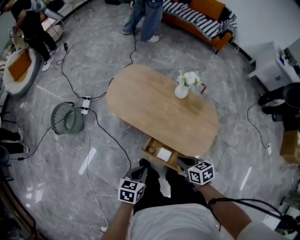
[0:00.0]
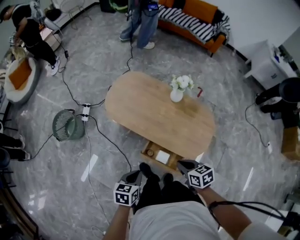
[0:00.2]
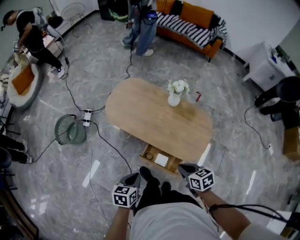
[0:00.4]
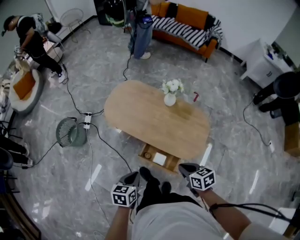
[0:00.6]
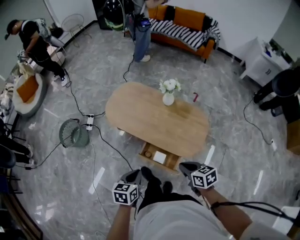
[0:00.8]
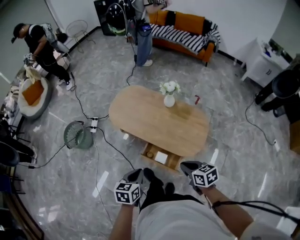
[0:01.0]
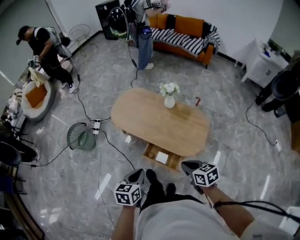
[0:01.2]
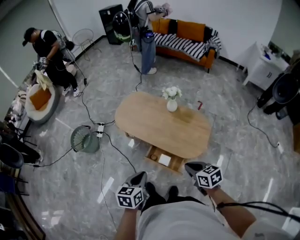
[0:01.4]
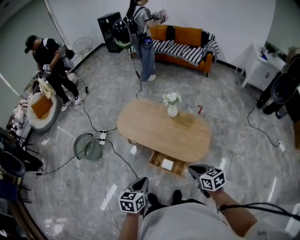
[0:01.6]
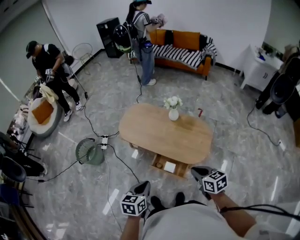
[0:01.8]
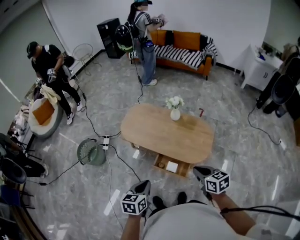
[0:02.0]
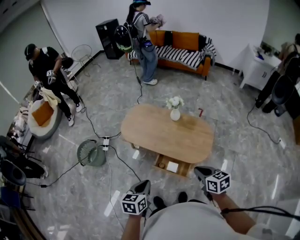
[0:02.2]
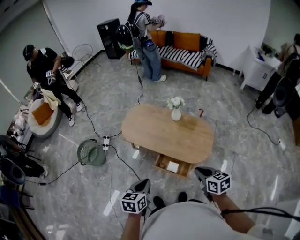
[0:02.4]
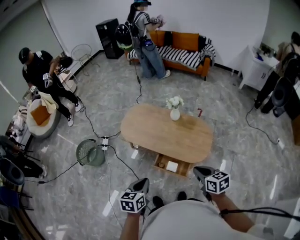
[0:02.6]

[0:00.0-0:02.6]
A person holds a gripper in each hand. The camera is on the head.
0:00.0 to 0:01.2: The right gripper goes roughly 20 cm backward, upward and to the right; the left gripper moves upward and backward, some 15 cm.
0:01.2 to 0:02.6: The right gripper is displaced upward by approximately 5 cm. Meanwhile the left gripper travels to the left by approximately 5 cm.

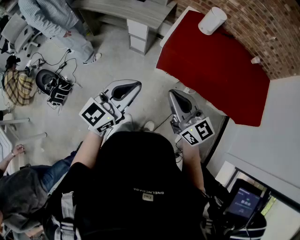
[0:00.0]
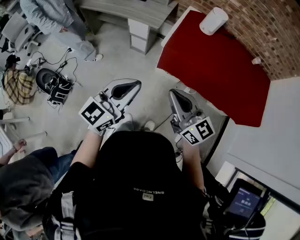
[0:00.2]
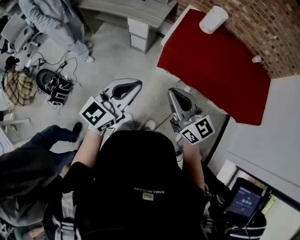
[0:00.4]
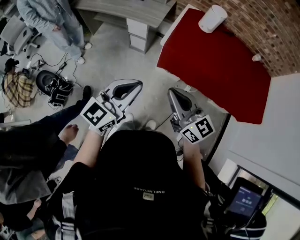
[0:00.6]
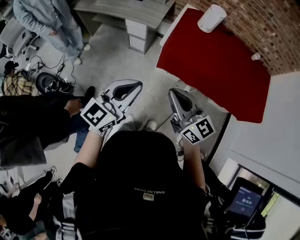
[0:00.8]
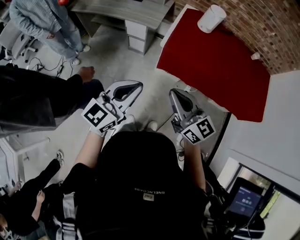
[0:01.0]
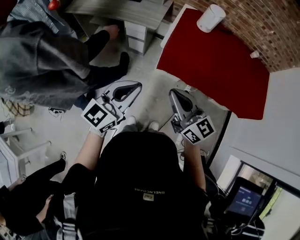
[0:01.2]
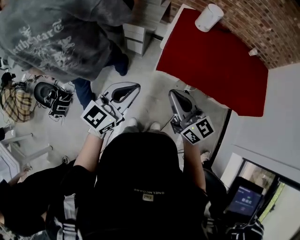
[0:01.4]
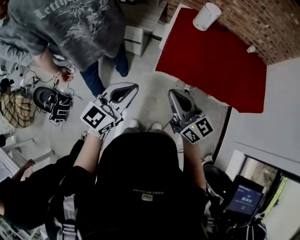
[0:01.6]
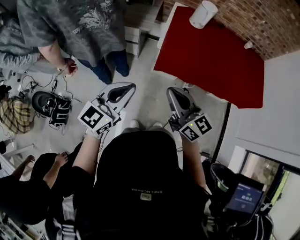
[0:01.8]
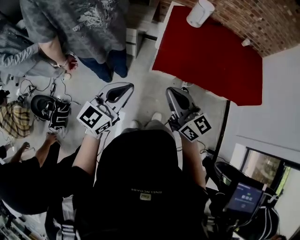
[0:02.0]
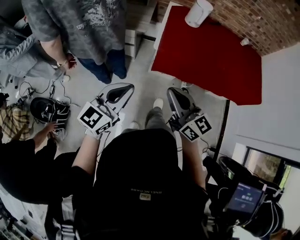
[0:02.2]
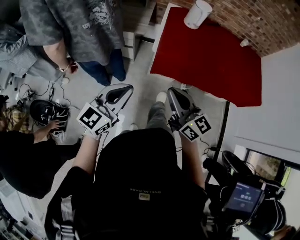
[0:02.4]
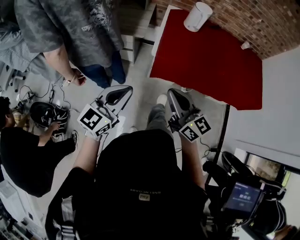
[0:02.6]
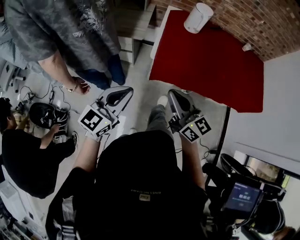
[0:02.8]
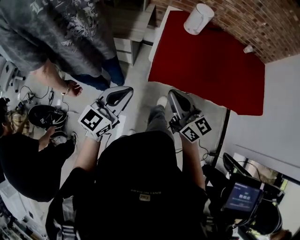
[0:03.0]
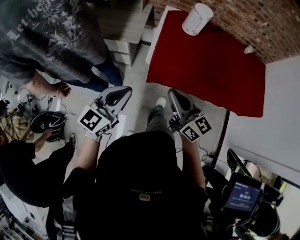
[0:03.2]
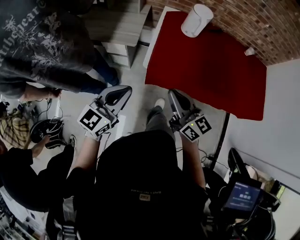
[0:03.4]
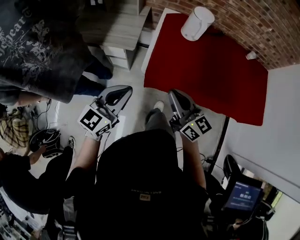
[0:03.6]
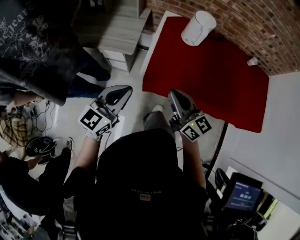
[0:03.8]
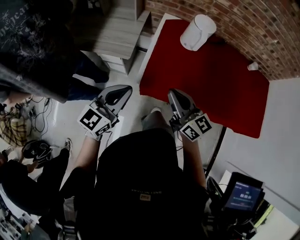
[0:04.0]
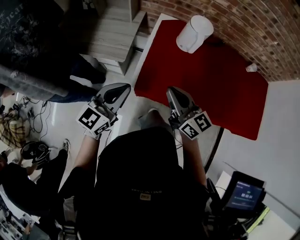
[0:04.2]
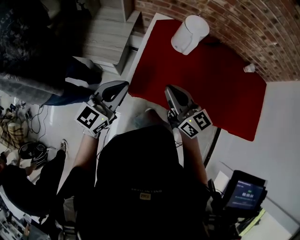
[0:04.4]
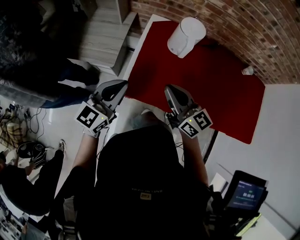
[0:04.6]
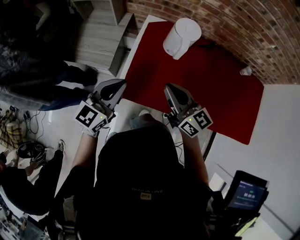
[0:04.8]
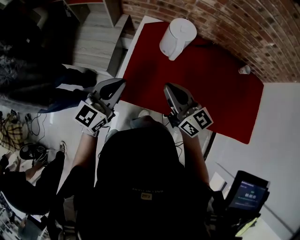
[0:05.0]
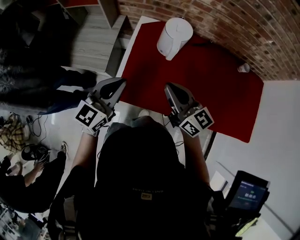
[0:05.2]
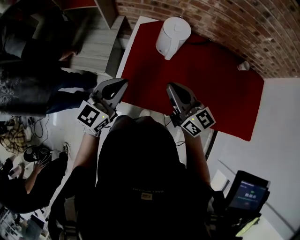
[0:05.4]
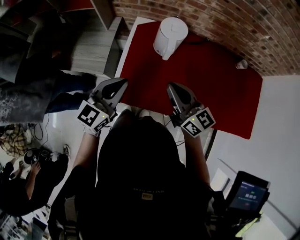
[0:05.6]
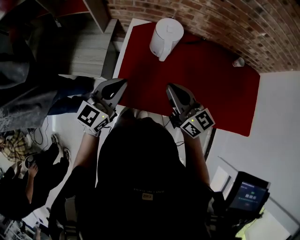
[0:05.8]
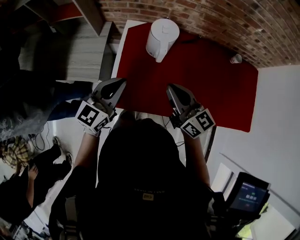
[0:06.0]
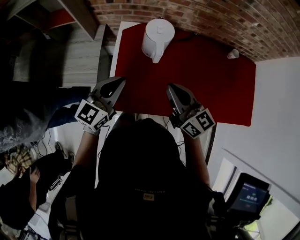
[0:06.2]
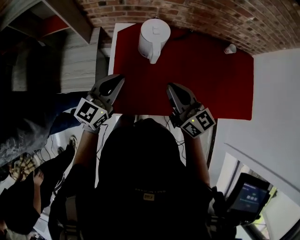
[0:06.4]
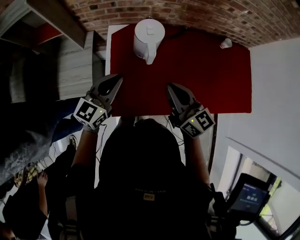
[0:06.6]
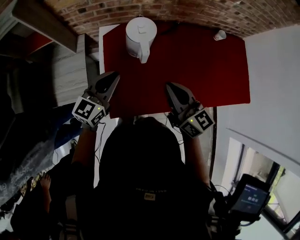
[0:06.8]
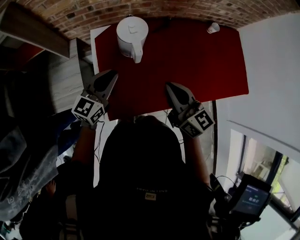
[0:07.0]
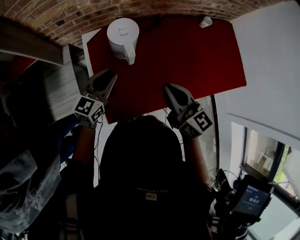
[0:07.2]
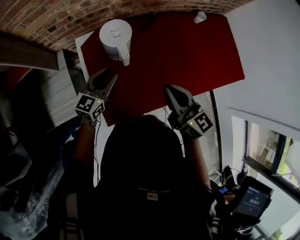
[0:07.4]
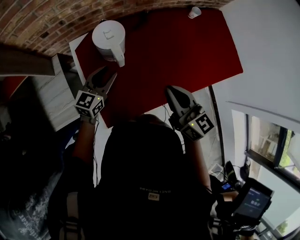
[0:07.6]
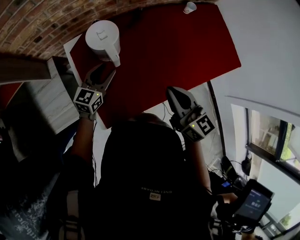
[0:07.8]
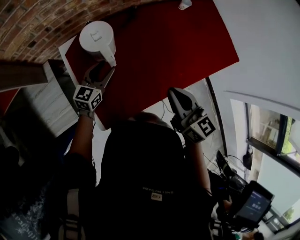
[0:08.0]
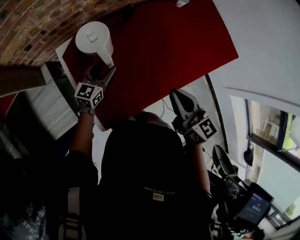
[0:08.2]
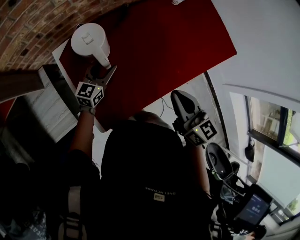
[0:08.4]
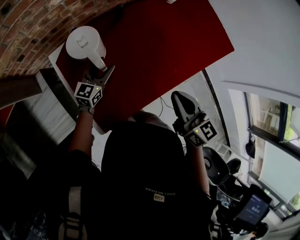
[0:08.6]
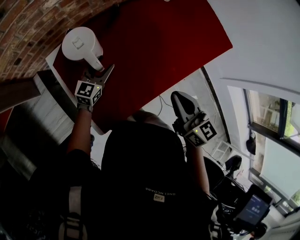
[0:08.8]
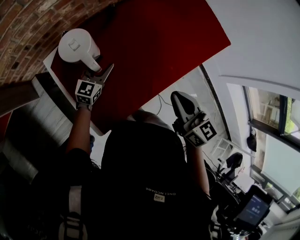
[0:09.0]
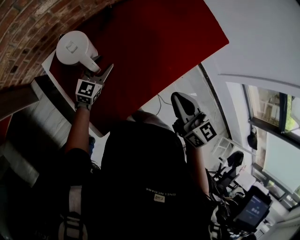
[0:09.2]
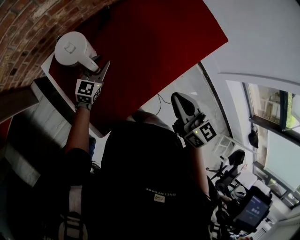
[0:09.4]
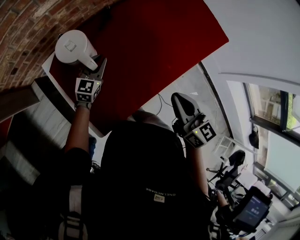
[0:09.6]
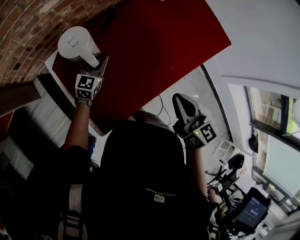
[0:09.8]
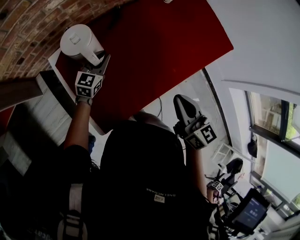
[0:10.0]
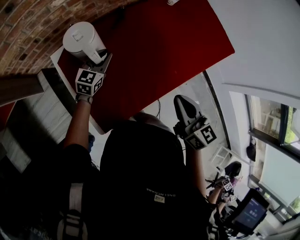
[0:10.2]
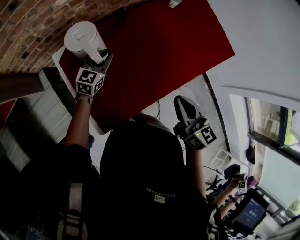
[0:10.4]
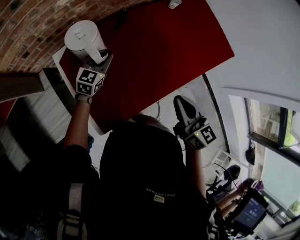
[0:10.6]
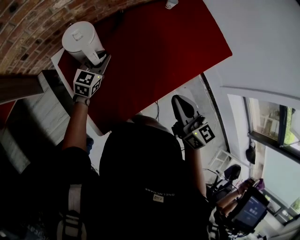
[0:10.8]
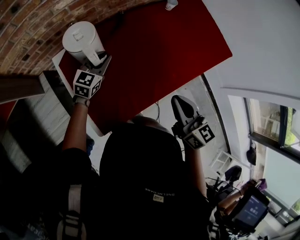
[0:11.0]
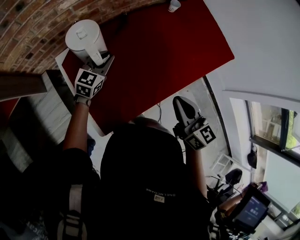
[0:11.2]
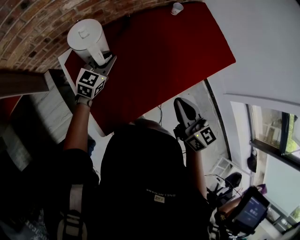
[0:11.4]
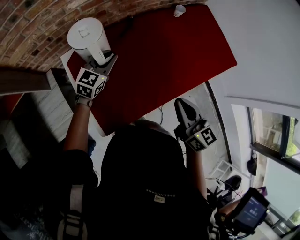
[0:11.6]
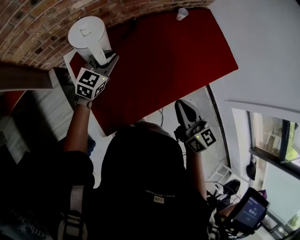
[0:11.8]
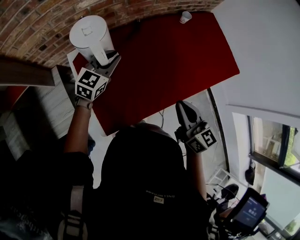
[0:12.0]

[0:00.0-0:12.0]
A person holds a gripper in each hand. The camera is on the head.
0:00.0 to 0:01.6: Both grippers move to the left, some 5 cm.
0:01.6 to 0:03.0: The grippers both shift forward by roughly 10 cm.
0:03.0 to 0:04.4: The left gripper shifts roughly 30 cm forward and to the right. The right gripper goes approximately 25 cm forward.
0:04.4 to 0:06.0: The left gripper heads forward and to the right, covering about 15 cm; the right gripper heads to the right and forward, covering approximately 15 cm.
0:06.0 to 0:07.6: The right gripper ends up approximately 10 cm from where it was, and turns by about 30 degrees, while the left gripper shifts by about 20 cm, rotates approximately 20 degrees, and opens.
0:07.6 to 0:09.0: The right gripper moves to the right, approximately 10 cm. Meanwhile the left gripper moves downward, forward and to the right, about 15 cm.
0:09.0 to 0:10.4: The left gripper closes its fingers.
0:10.4 to 0:12.0: The left gripper shifts about 10 cm upward.

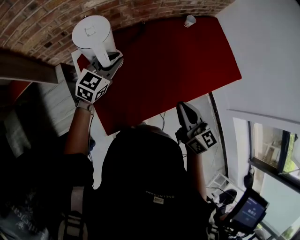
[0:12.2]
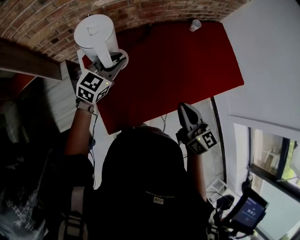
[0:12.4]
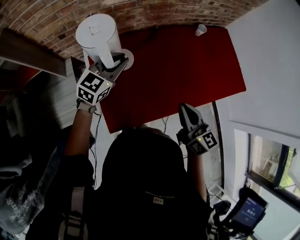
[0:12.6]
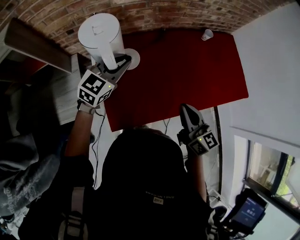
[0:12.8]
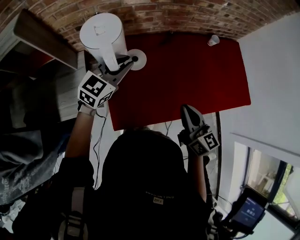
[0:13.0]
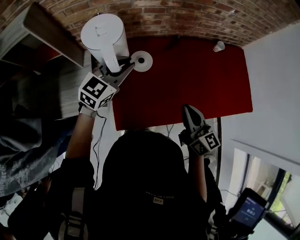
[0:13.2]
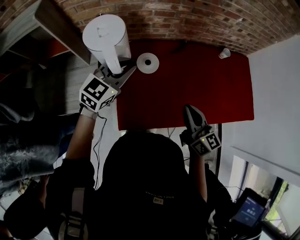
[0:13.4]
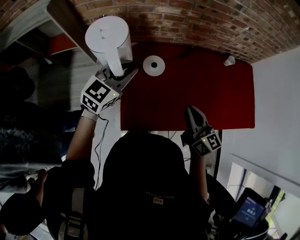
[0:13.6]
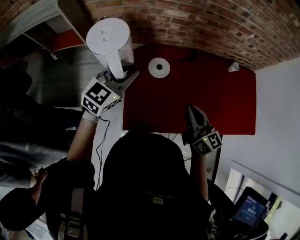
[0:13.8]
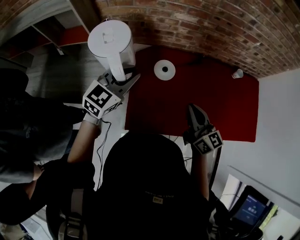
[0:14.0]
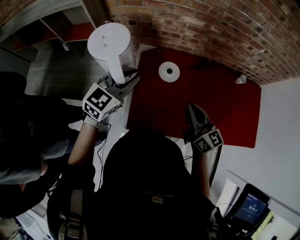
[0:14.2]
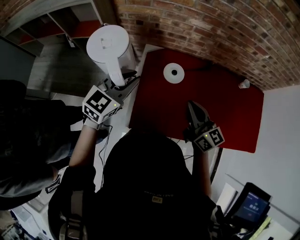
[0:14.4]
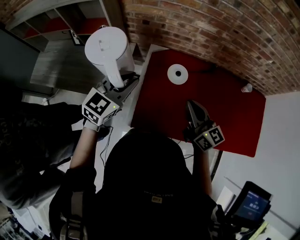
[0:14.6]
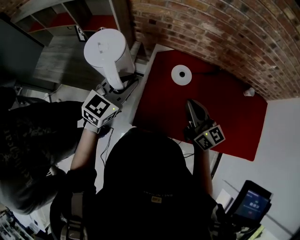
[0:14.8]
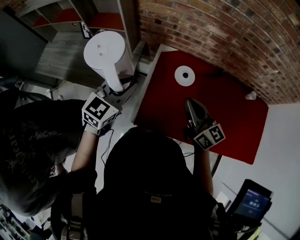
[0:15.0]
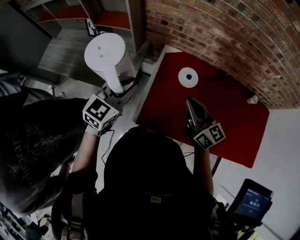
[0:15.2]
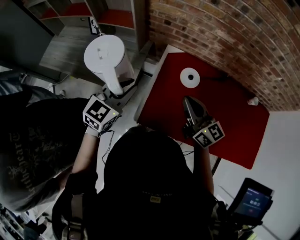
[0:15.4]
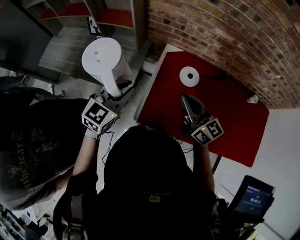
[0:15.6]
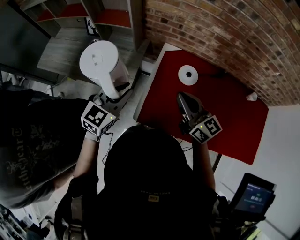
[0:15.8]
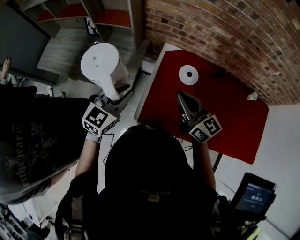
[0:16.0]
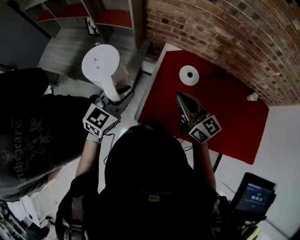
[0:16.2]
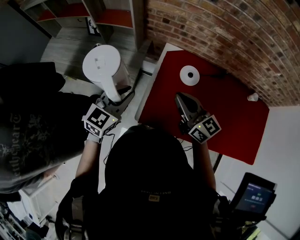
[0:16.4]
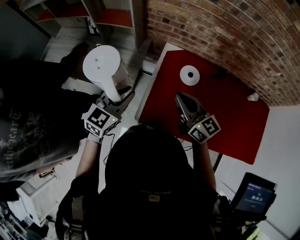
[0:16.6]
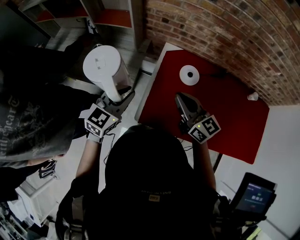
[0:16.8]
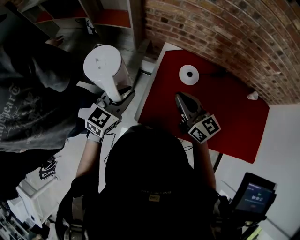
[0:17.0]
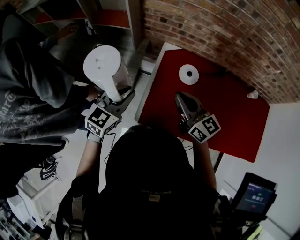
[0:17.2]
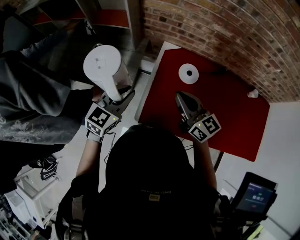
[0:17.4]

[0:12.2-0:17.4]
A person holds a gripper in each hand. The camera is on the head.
0:12.2 to 0:14.0: The right gripper moves to the left, about 15 cm, and rotates about 30 degrees. The left gripper moves to the left, backward and upward, approximately 20 cm, and changes its angle by some 20 degrees.
0:14.0 to 0:15.6: The right gripper goes about 15 cm to the left, and changes its angle by approximately 20 degrees. Meanwhile the left gripper is displaced to the left and backward by roughly 15 cm.
0:15.6 to 0:17.4: The grippers stay close to where they were, moving slightly.

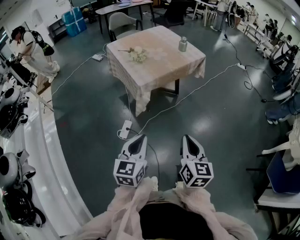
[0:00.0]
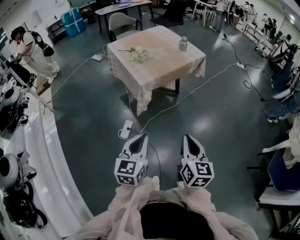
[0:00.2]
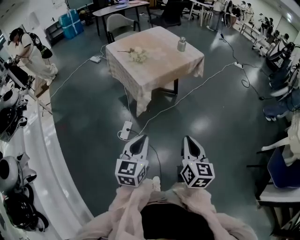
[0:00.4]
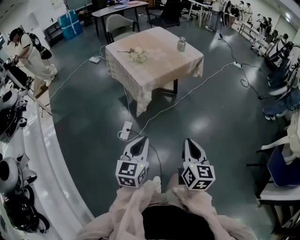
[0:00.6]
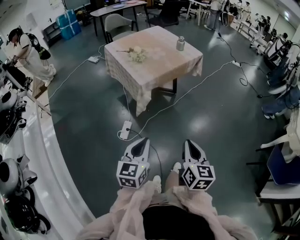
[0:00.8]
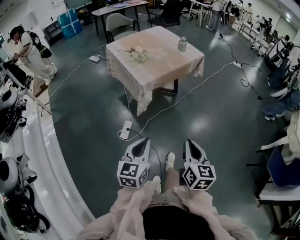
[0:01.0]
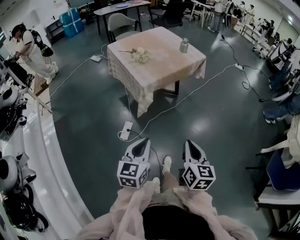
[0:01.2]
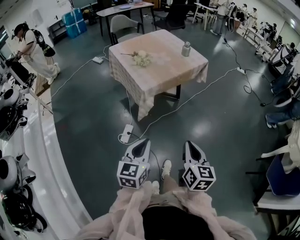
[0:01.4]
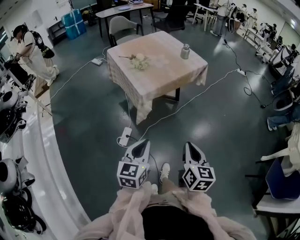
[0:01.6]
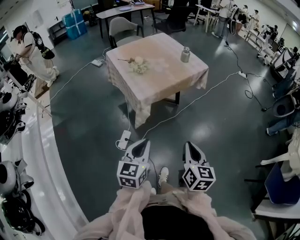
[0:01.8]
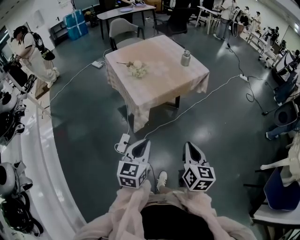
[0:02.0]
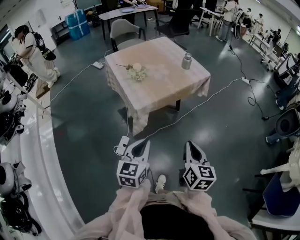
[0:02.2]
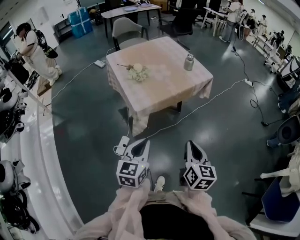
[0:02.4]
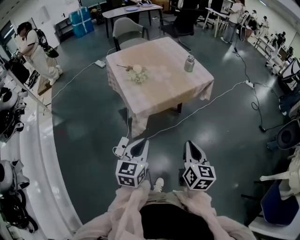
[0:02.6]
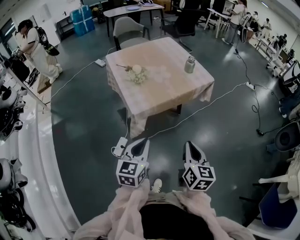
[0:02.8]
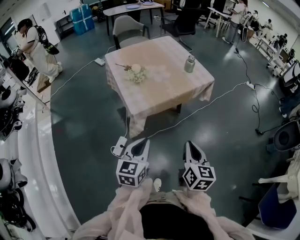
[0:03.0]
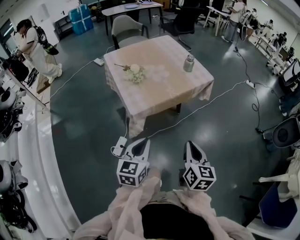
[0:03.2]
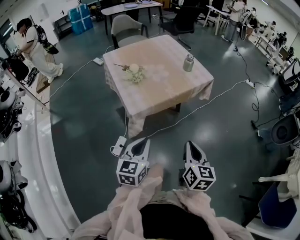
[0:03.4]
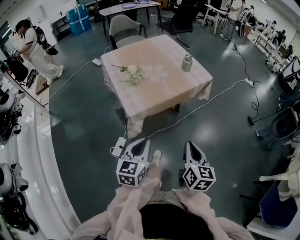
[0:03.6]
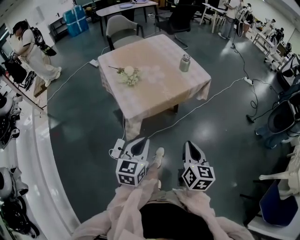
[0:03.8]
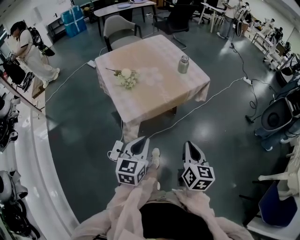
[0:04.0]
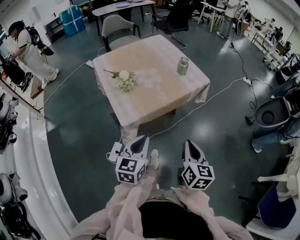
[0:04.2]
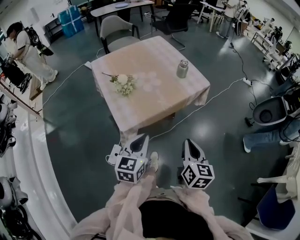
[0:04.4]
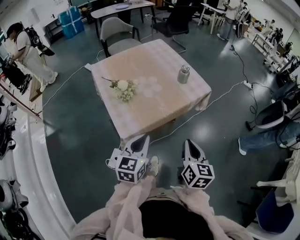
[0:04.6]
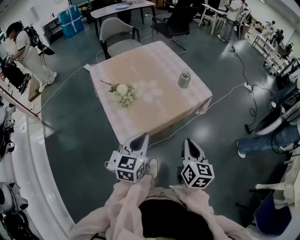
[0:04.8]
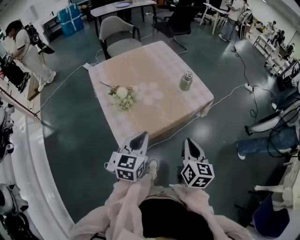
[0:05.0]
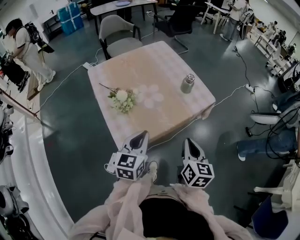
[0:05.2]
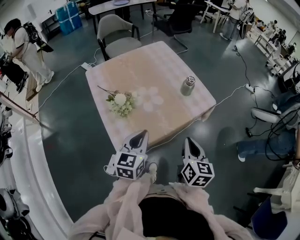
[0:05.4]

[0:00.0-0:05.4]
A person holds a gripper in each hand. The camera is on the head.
0:00.0 to 0:01.4: There are only small adjustments of the grippers.
0:01.4 to 0:02.8: The two grippers go approximately 20 cm forward.
0:02.8 to 0:04.0: The grippers both shift forward by approximately 5 cm.
0:04.0 to 0:05.4: Both grippers move forward, roughly 25 cm.
